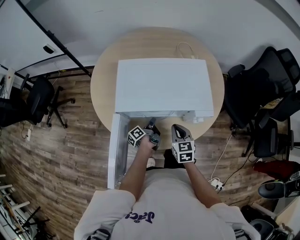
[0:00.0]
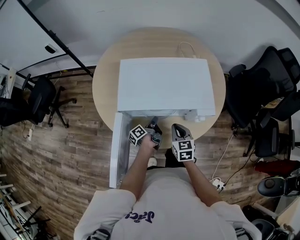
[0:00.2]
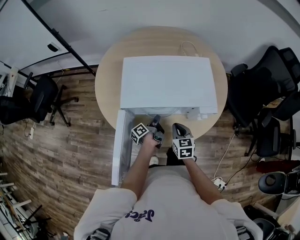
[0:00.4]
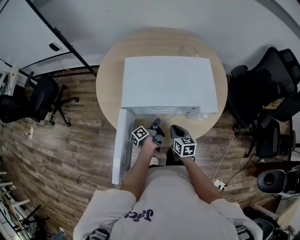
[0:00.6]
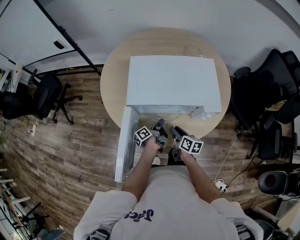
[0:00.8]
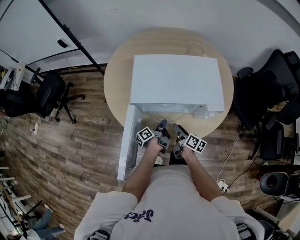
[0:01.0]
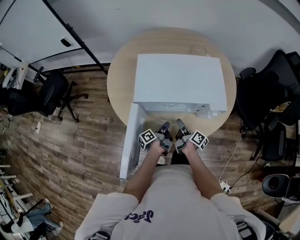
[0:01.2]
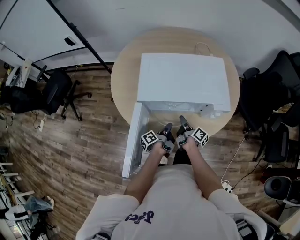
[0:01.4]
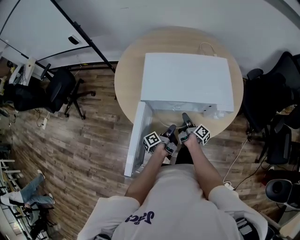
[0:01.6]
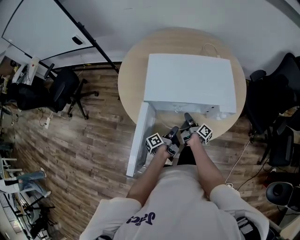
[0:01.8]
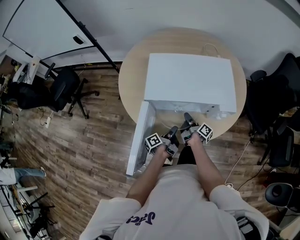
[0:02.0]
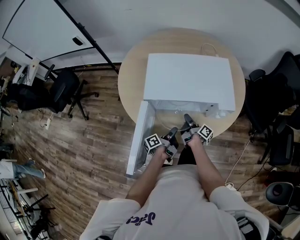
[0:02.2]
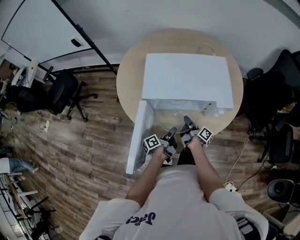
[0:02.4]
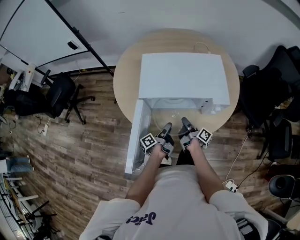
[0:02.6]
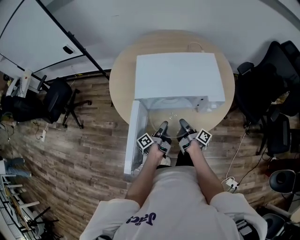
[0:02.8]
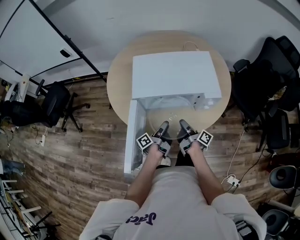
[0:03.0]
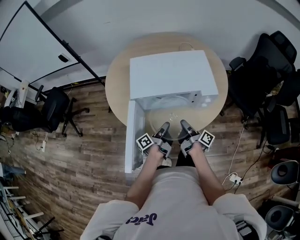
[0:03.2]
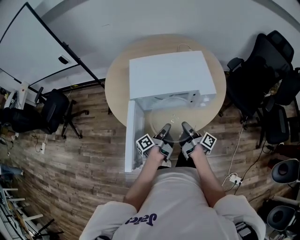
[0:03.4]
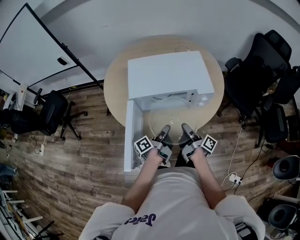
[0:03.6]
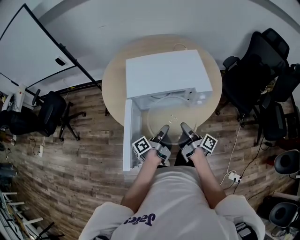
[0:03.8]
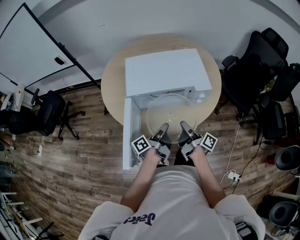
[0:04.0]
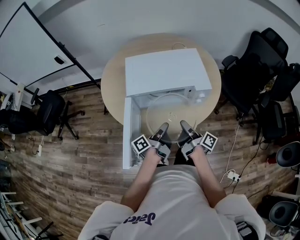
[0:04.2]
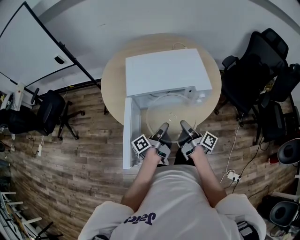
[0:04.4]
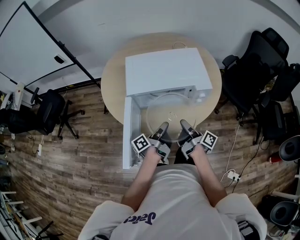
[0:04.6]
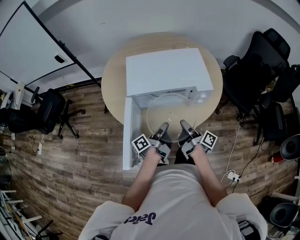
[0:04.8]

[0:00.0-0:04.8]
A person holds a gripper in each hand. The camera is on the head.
0.0 to 1.6 s: The right gripper moves downward, about 10 cm, rolls clockwise, seen from behind, by approximately 80 degrees, and opens up.
1.6 to 3.2 s: The right gripper shifts by roughly 15 cm, and closes its fingers.
3.2 to 4.8 s: The right gripper moves upward, about 5 cm.

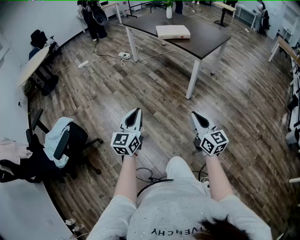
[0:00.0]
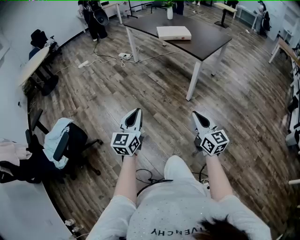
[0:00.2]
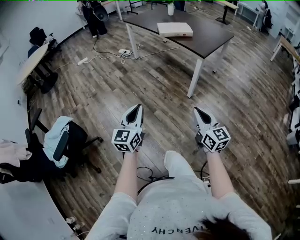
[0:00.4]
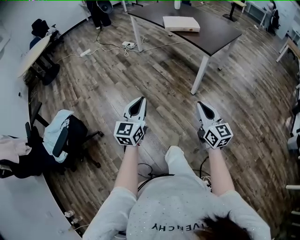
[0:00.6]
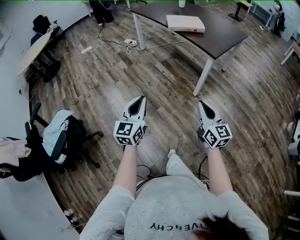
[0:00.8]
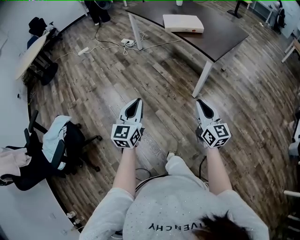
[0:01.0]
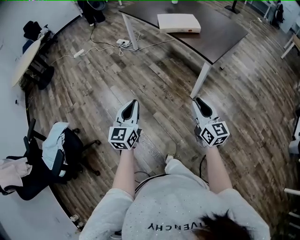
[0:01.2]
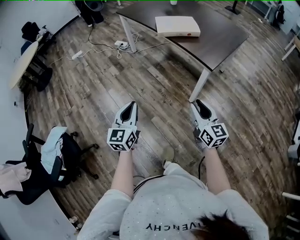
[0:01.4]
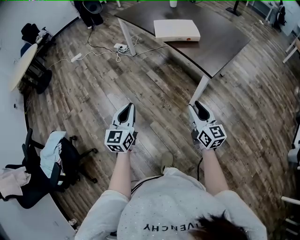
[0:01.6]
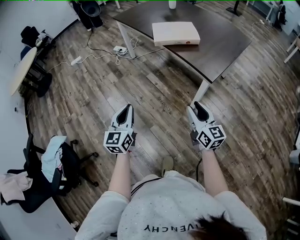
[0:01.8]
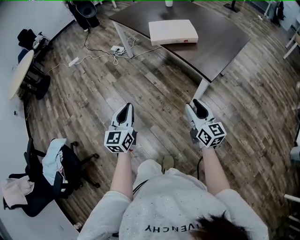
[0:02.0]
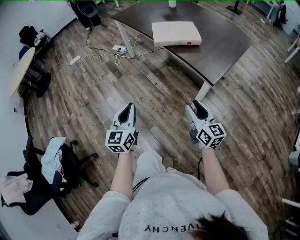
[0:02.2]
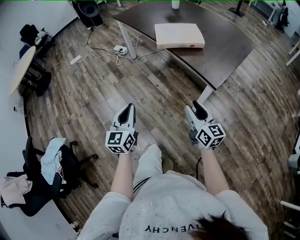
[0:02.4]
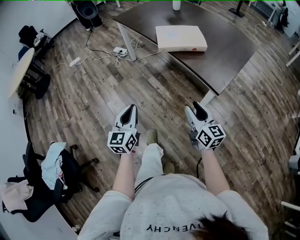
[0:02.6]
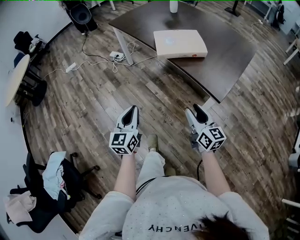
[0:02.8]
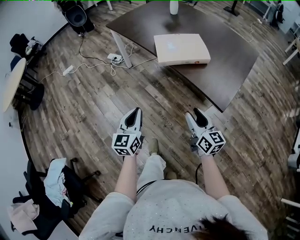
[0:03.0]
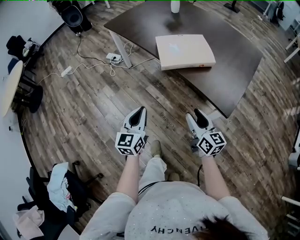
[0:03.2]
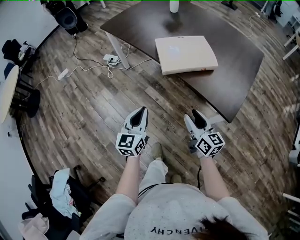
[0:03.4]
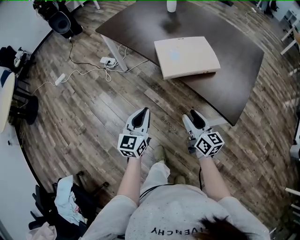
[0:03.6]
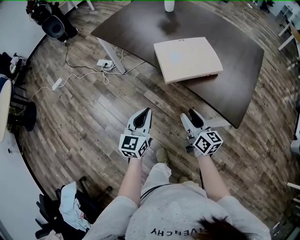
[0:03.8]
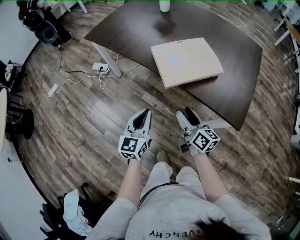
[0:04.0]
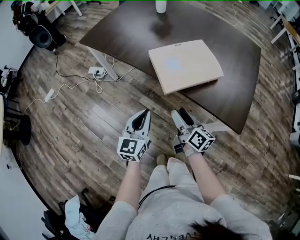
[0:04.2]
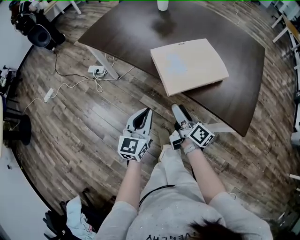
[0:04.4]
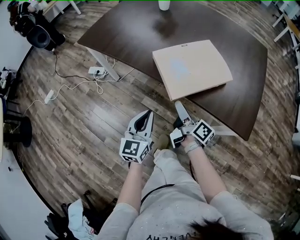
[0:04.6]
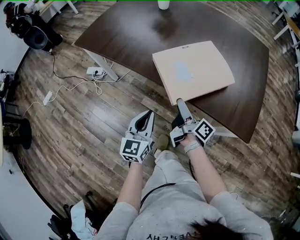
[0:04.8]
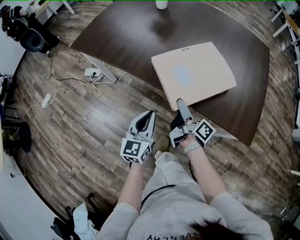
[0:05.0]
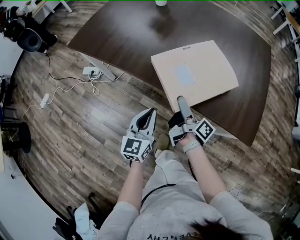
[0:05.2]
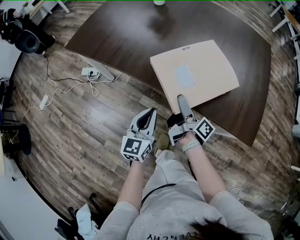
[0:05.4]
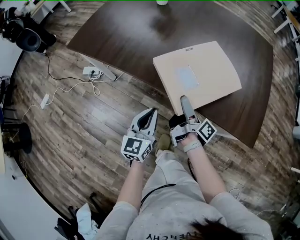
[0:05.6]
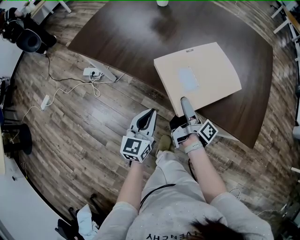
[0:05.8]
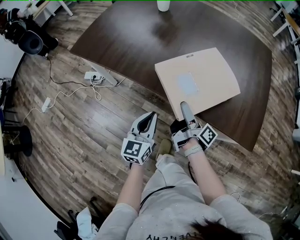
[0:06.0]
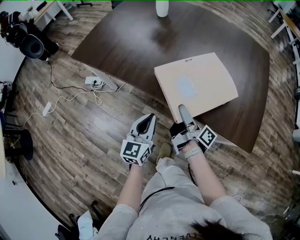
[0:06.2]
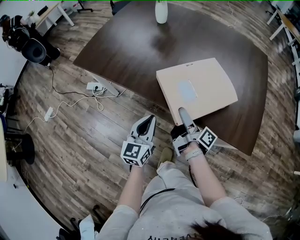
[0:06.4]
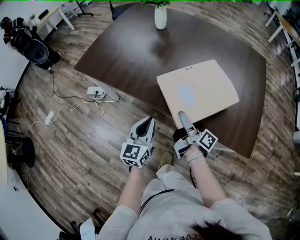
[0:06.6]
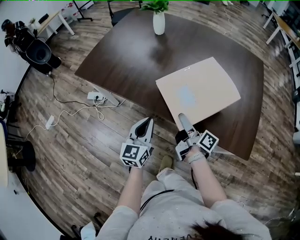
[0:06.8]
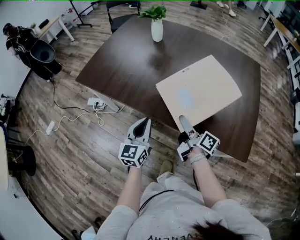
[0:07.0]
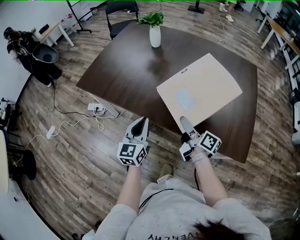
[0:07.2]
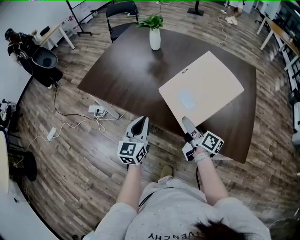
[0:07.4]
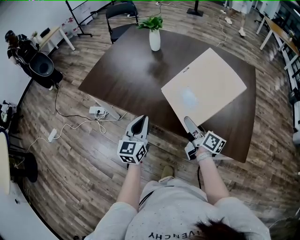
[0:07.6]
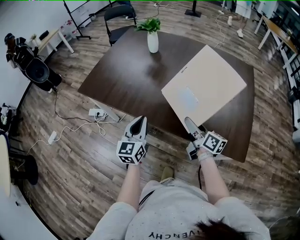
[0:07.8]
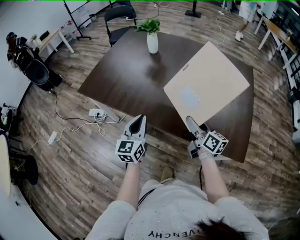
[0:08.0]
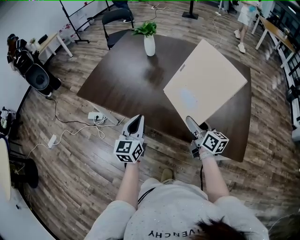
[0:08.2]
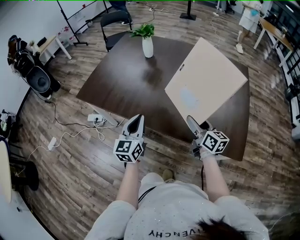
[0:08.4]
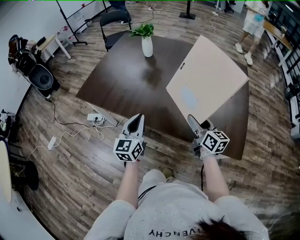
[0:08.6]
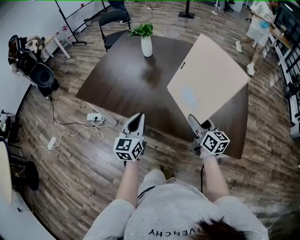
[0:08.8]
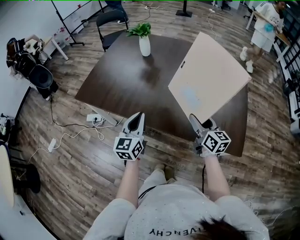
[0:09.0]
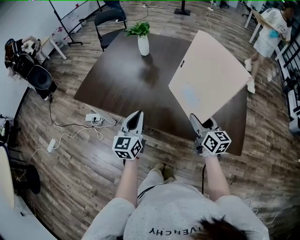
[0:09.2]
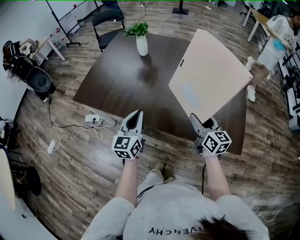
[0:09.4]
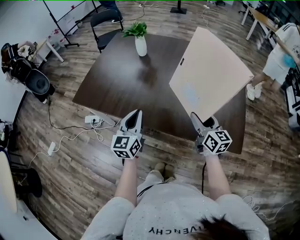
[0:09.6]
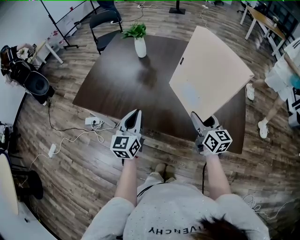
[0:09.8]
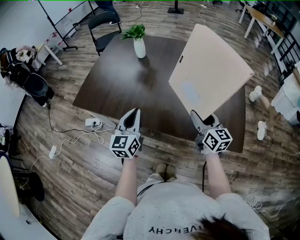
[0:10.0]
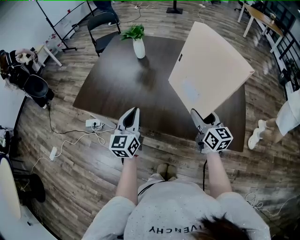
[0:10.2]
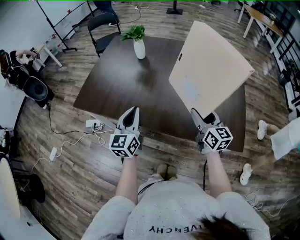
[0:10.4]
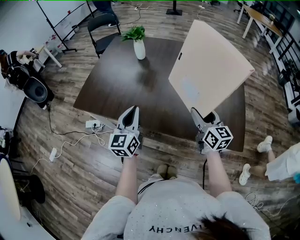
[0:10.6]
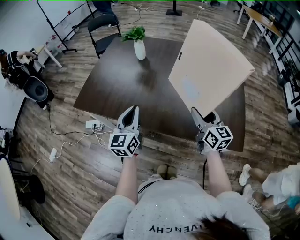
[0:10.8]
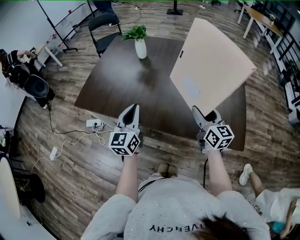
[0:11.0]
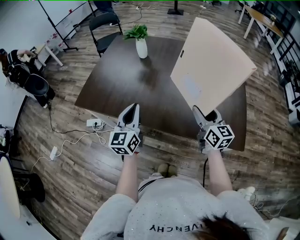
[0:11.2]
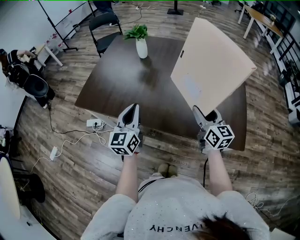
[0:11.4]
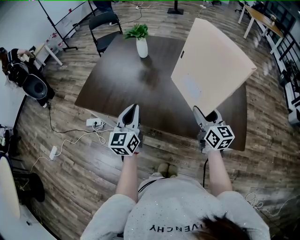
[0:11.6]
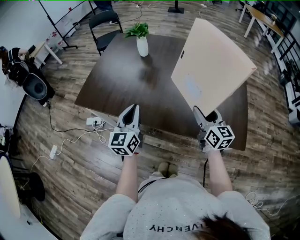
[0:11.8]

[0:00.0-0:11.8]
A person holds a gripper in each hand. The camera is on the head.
0.0 to 1.4 s: The two grippers go some 35 cm forward.
1.4 to 3.0 s: The grippers both shift forward by roughly 30 cm.
3.0 to 4.4 s: The left gripper shifts about 30 cm forward, while the right gripper goes roughly 30 cm forward and to the left, twists some 40 degrees clockwise, seen from behind, and opens up.
4.4 to 6.0 s: The two grippers go some 10 cm forward. The right gripper swivels roughly 30 degrees.
6.0 to 7.4 s: The right gripper shifts approximately 10 cm upward, and swivels approximately 30 degrees. The left gripper moves upward and forward, approximately 15 cm.
7.4 to 8.8 s: The right gripper travels to the right and upward by about 10 cm, and changes its angle by roughly 30 degrees.
8.8 to 10.4 s: The right gripper heads upward, covering about 5 cm, while the left gripper moves about 5 cm.
10.4 to 11.8 s: The grippers stay close to where they were, moving slightly.

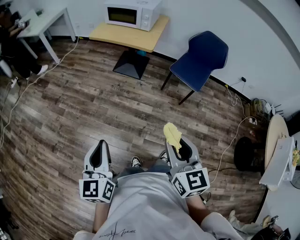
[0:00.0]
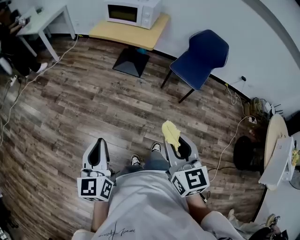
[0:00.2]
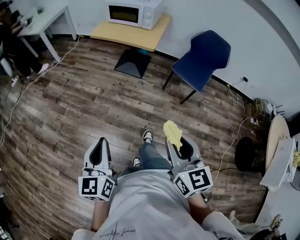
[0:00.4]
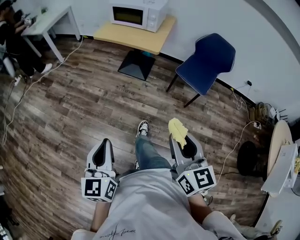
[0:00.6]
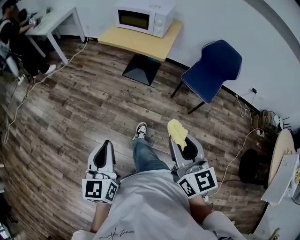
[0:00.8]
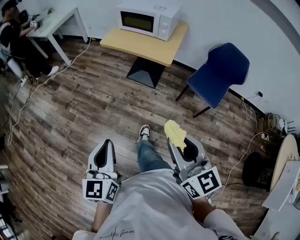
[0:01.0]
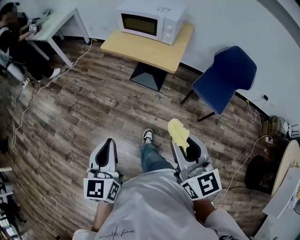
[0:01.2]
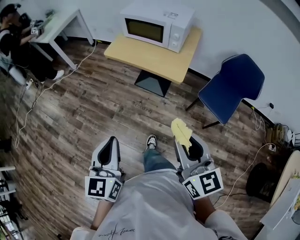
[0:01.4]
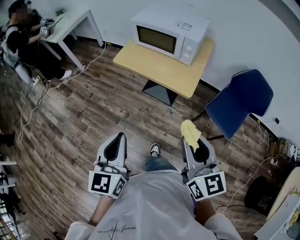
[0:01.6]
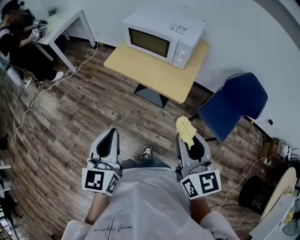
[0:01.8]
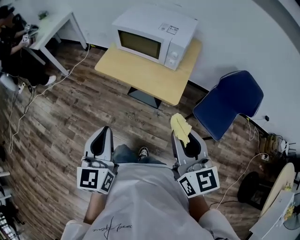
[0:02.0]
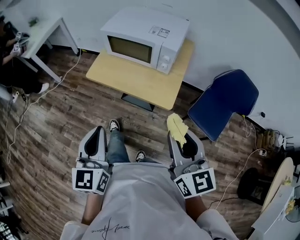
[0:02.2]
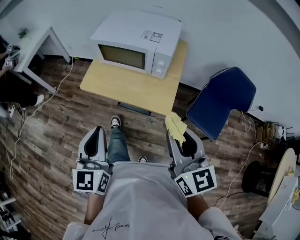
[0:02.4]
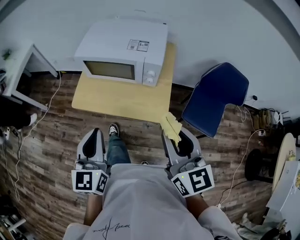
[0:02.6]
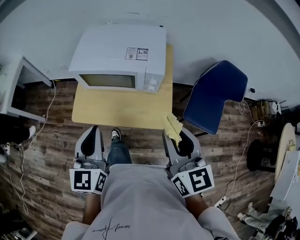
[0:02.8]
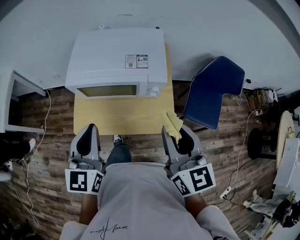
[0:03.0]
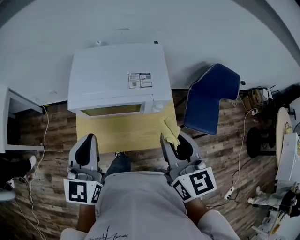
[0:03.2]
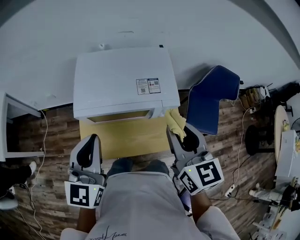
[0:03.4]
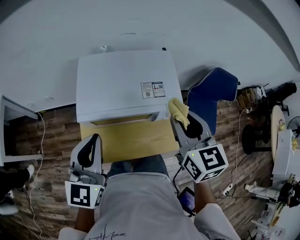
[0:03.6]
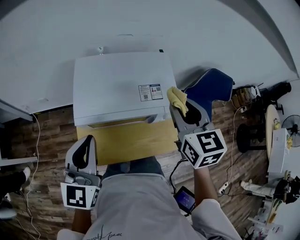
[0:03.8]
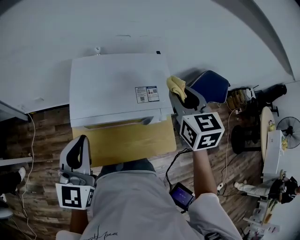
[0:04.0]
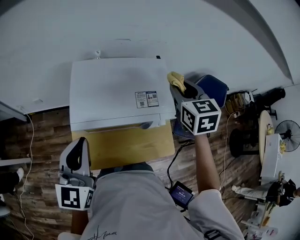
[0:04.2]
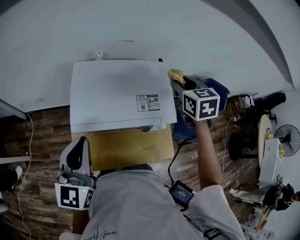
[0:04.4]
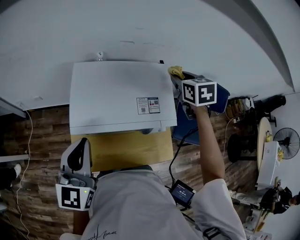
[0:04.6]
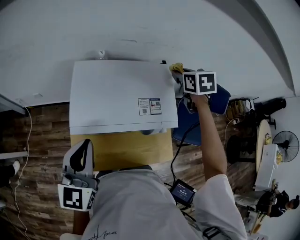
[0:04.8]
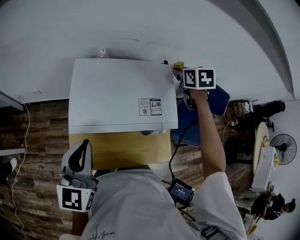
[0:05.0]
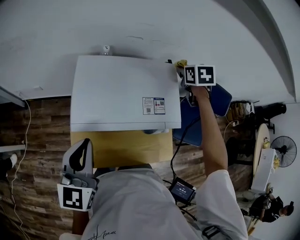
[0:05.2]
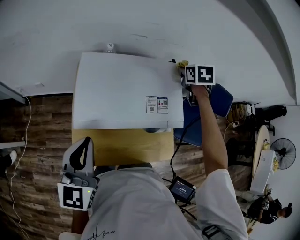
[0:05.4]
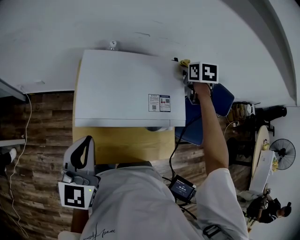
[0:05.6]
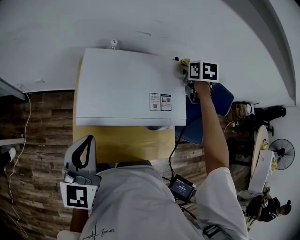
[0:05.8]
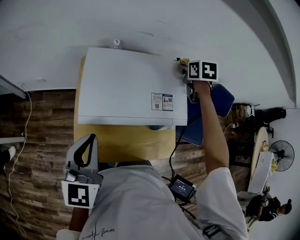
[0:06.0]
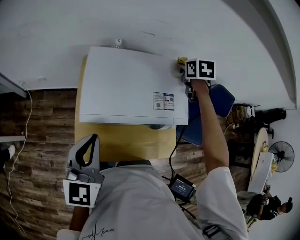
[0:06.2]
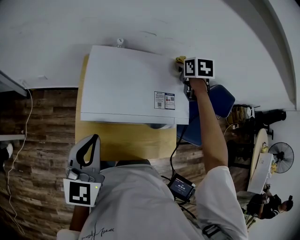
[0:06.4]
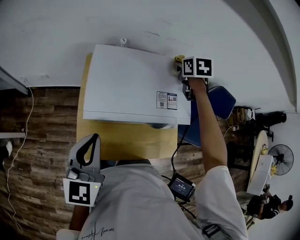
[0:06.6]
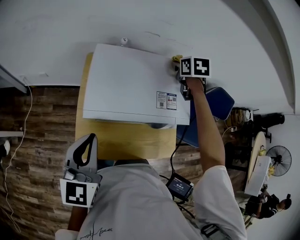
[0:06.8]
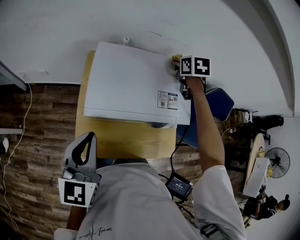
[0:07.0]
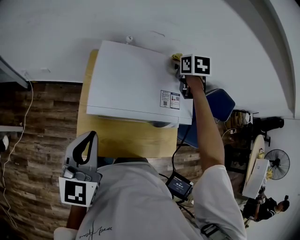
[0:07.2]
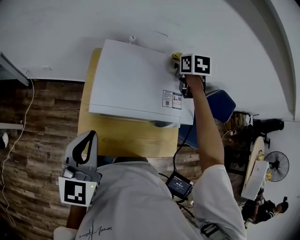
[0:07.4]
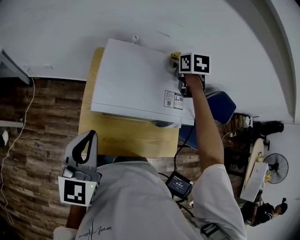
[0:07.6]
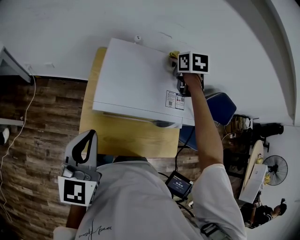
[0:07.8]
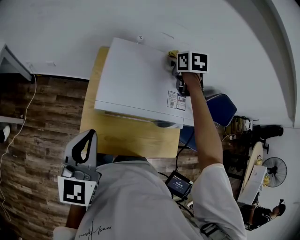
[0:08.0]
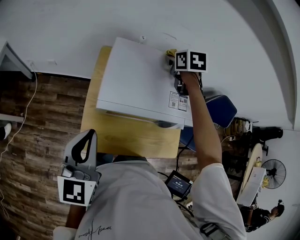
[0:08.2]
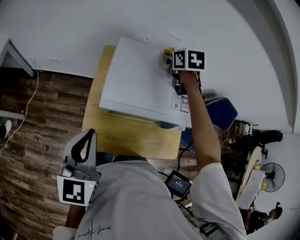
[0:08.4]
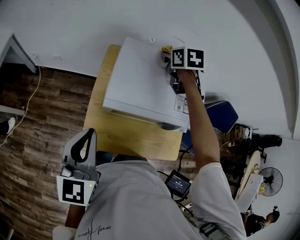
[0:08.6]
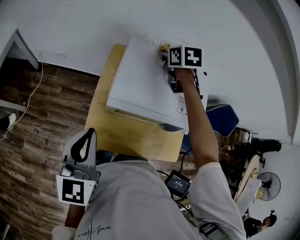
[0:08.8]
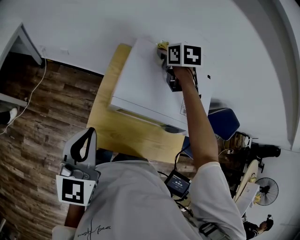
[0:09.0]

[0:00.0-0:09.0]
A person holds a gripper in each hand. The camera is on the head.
0.0 to 1.6 s: The pair of grippers is taken forward, roughly 40 cm.
1.6 to 3.0 s: The right gripper changes place by some 35 cm, and changes its angle by approximately 30 degrees; the left gripper shifts by about 50 cm, and swivels some 30 degrees.
3.0 to 4.4 s: The left gripper travels forward and to the left by roughly 15 cm. The right gripper shifts approximately 30 cm forward, and turns by approximately 30 degrees.
4.4 to 6.0 s: The right gripper goes about 15 cm forward and downward.
6.0 to 7.6 s: The right gripper heads to the left, covering approximately 10 cm; the left gripper changes place by roughly 5 cm.
7.6 to 9.0 s: The left gripper heads to the left, covering approximately 5 cm, while the right gripper travels to the left by roughly 20 cm.
